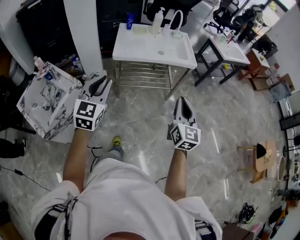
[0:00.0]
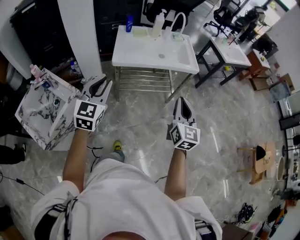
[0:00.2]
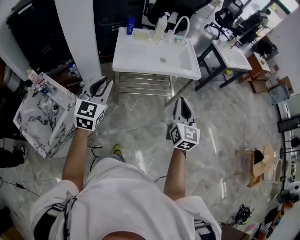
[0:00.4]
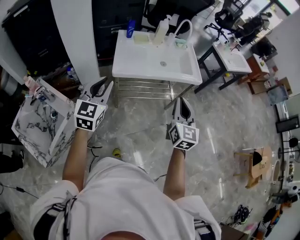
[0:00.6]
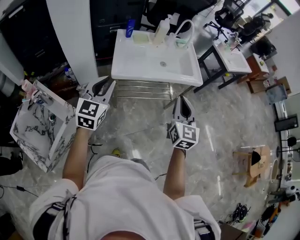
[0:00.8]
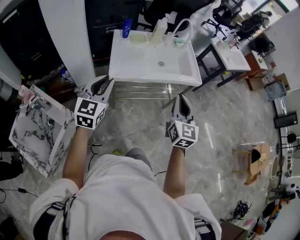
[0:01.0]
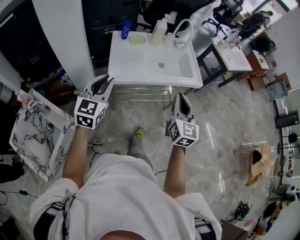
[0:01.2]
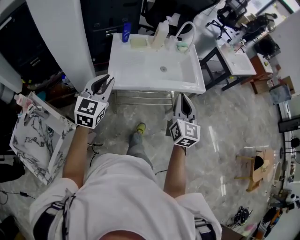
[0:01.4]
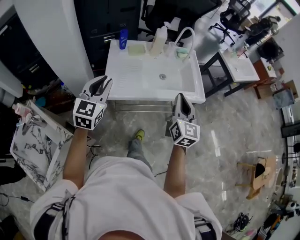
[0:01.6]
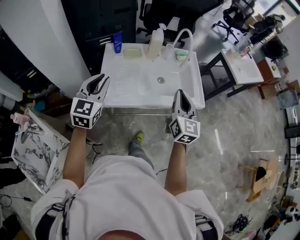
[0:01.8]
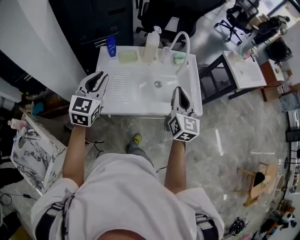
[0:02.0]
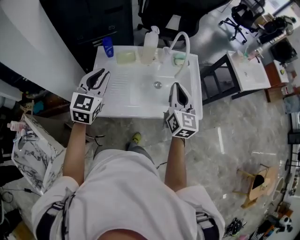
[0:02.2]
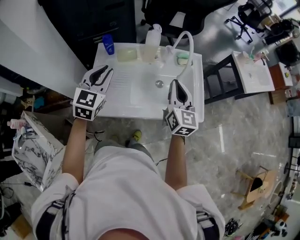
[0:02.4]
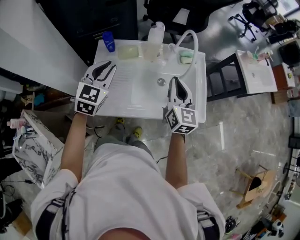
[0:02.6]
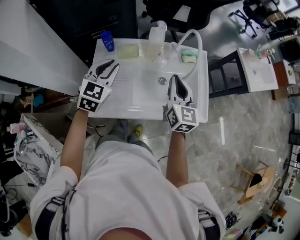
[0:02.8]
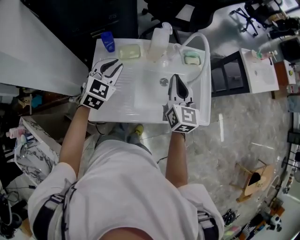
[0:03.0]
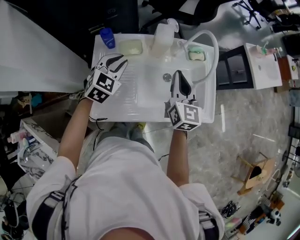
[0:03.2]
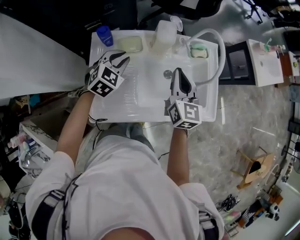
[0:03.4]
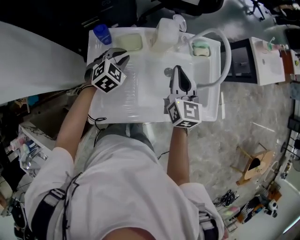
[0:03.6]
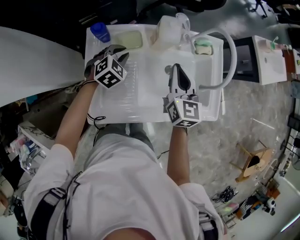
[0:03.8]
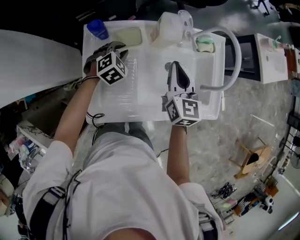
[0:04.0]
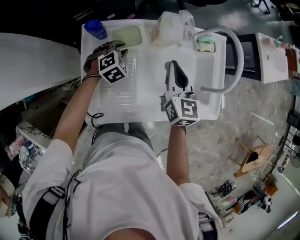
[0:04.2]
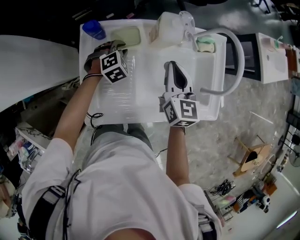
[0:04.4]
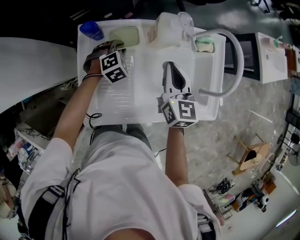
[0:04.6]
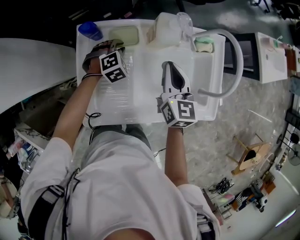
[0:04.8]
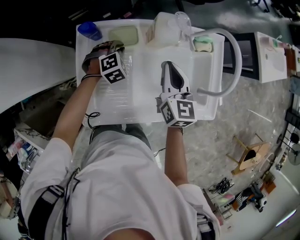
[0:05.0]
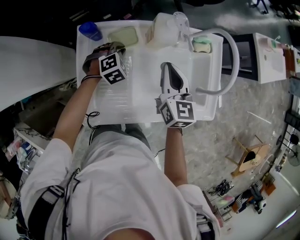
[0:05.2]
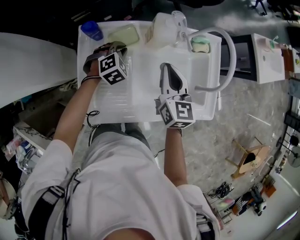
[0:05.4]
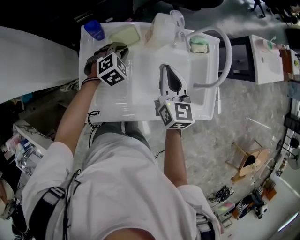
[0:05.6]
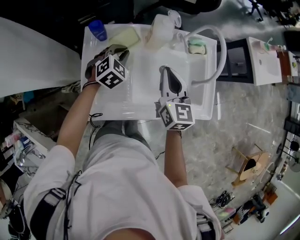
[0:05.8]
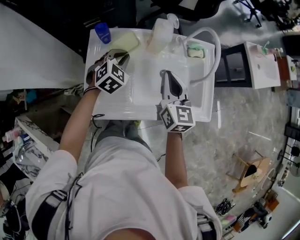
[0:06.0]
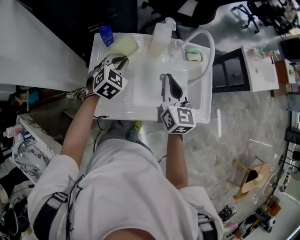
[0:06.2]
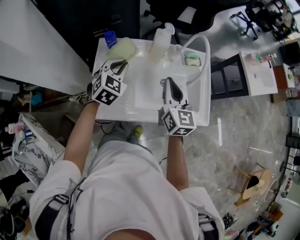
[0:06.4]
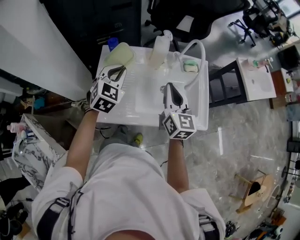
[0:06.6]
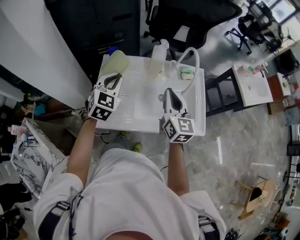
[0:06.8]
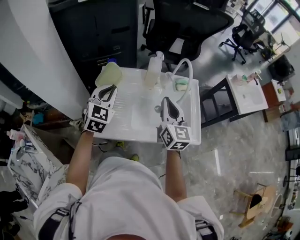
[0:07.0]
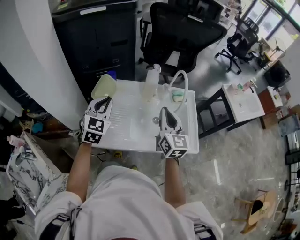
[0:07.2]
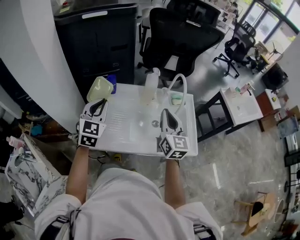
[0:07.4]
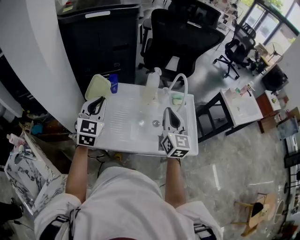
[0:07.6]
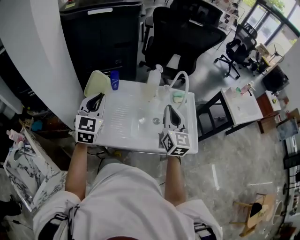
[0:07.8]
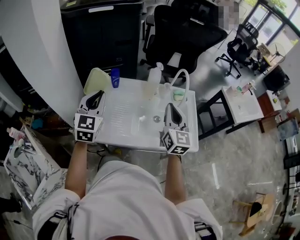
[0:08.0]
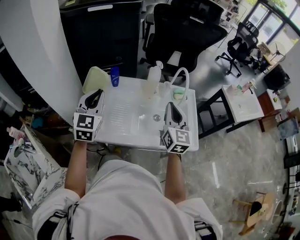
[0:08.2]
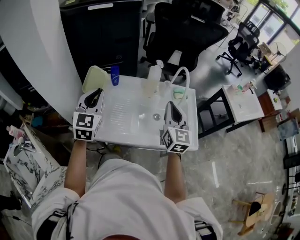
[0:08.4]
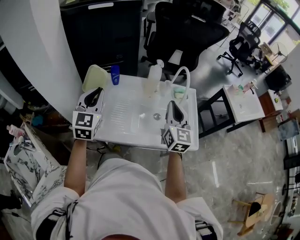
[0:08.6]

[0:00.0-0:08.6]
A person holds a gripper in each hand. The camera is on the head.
0:00.0 to 0:01.4: The two grippers go some 35 cm forward.
0:01.4 to 0:02.8: Both grippers move forward, approximately 35 cm.
0:02.8 to 0:04.4: The right gripper goes approximately 15 cm forward, downward and to the left. Meanwhile the left gripper goes approximately 30 cm downward and forward, and tilts its fingers about 30 degrees downward.
0:04.4 to 0:05.8: The left gripper travels upward by about 10 cm. Meanwhile the right gripper heads backward, covering some 5 cm.
0:05.8 to 0:07.2: The right gripper goes roughly 15 cm upward, backward and to the right. Meanwhile the left gripper travels upward and backward by about 30 cm, and swivels some 40 degrees.
0:07.2 to 0:08.6: The left gripper moves approximately 5 cm.

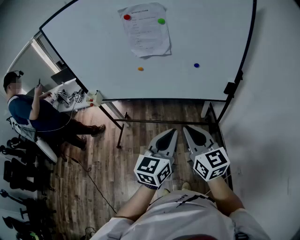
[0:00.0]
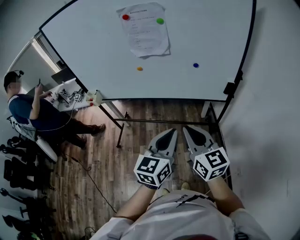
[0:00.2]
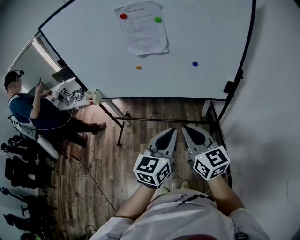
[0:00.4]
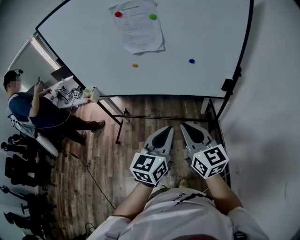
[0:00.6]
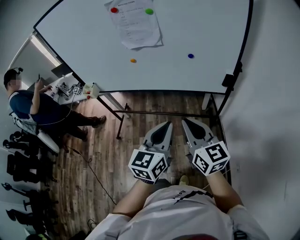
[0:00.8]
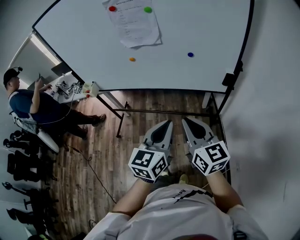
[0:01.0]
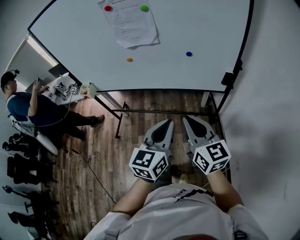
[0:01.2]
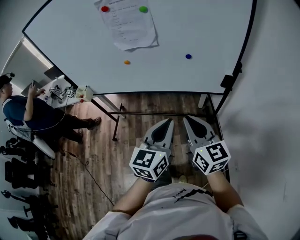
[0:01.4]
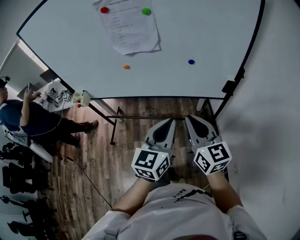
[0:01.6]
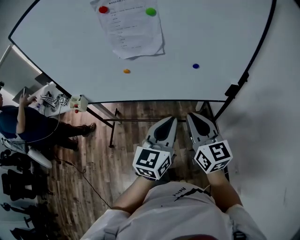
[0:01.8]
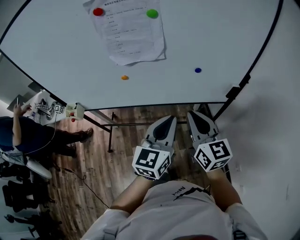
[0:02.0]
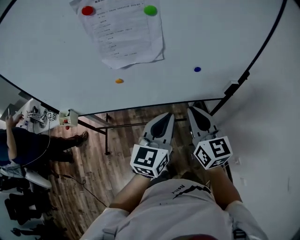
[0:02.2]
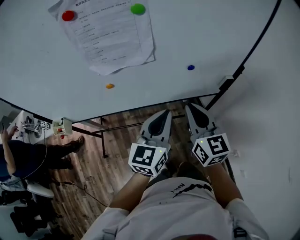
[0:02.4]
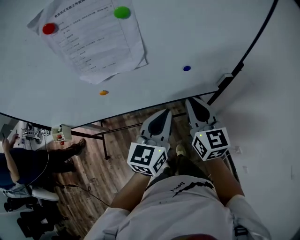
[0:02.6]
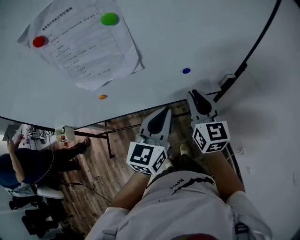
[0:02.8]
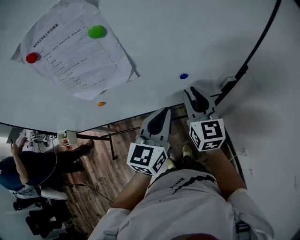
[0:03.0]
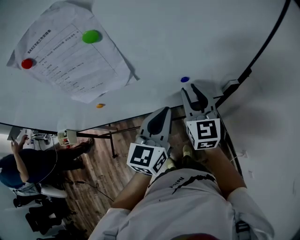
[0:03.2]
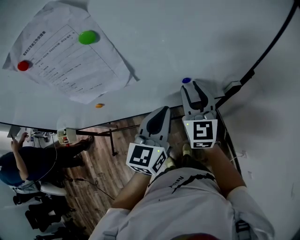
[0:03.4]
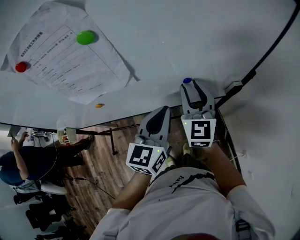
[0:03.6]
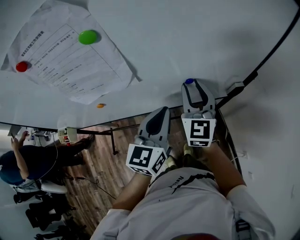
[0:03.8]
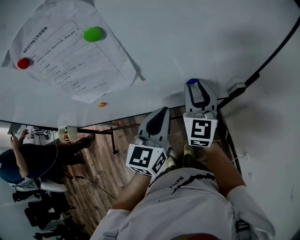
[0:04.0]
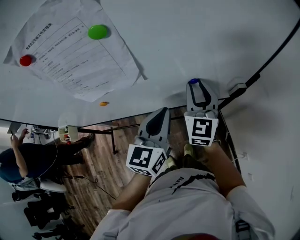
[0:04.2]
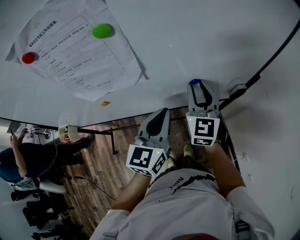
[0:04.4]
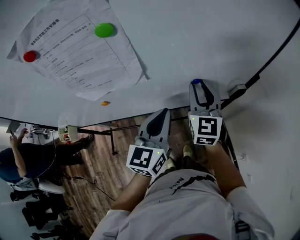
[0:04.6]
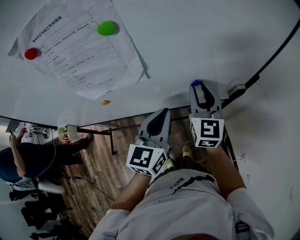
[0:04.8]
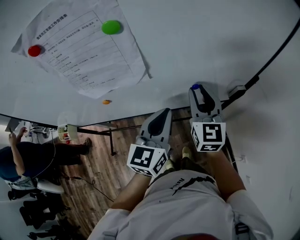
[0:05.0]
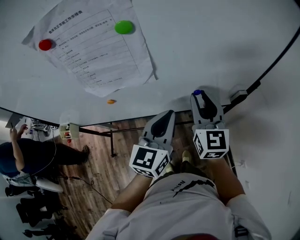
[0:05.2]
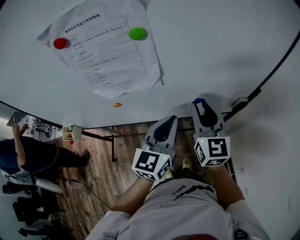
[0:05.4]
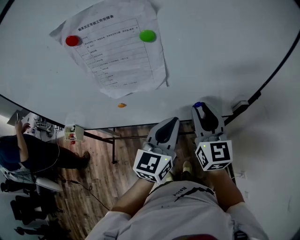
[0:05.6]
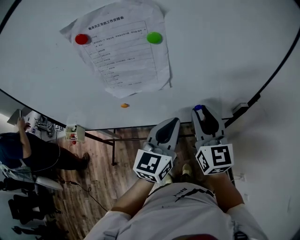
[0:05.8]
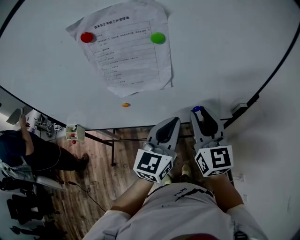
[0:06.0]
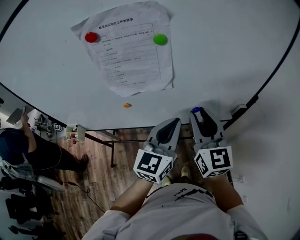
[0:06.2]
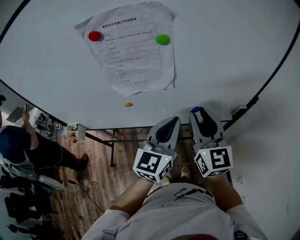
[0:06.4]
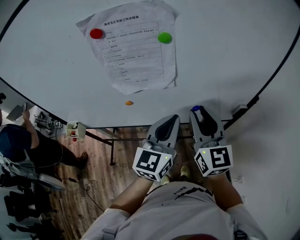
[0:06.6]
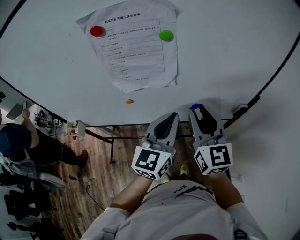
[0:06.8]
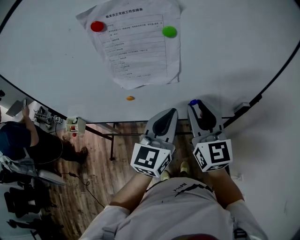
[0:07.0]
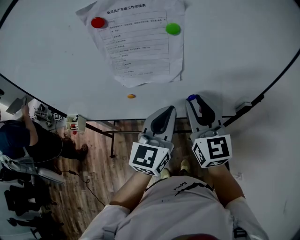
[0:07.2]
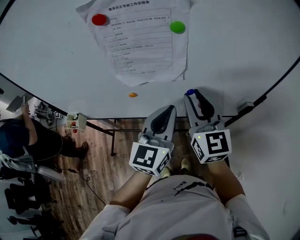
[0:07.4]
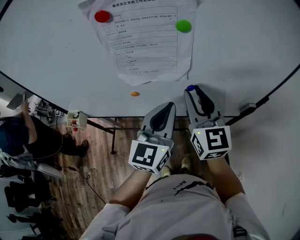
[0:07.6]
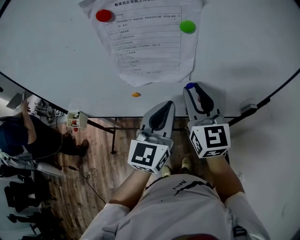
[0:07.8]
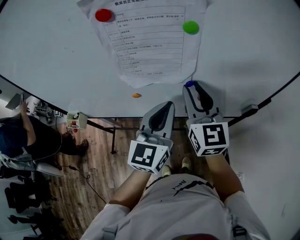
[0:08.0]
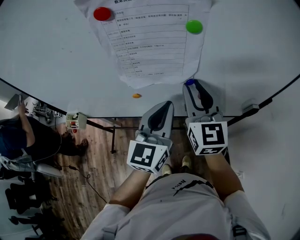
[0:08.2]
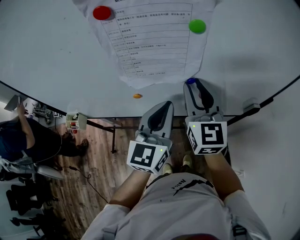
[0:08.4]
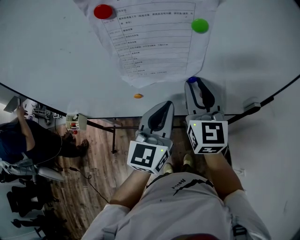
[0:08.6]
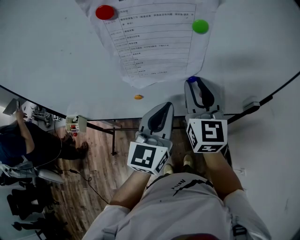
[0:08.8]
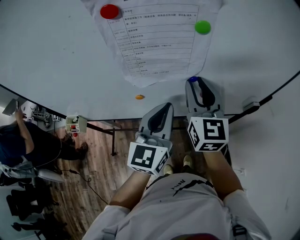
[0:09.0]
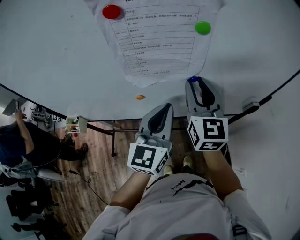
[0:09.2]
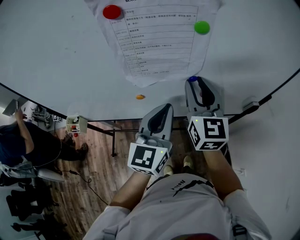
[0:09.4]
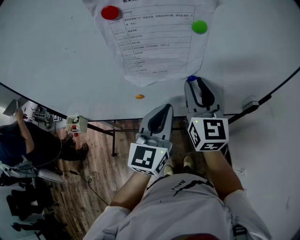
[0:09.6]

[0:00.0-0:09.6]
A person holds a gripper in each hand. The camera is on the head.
0:00.0 to 0:01.6: The right gripper goes roughly 10 cm forward and to the right; the left gripper travels forward by approximately 10 cm.
0:01.6 to 0:03.2: Both grippers travel together forward, about 25 cm. The right gripper changes its angle by roughly 30 degrees, and opens up.
0:03.2 to 0:04.8: The grippers make only small movements.
0:04.8 to 0:06.4: The right gripper moves backward, upward and to the left, roughly 15 cm; the left gripper moves upward, approximately 5 cm.
0:06.4 to 0:08.0: The right gripper moves to the left and forward, roughly 10 cm. Meanwhile the left gripper shifts approximately 5 cm to the left.
0:08.0 to 0:09.6: The grippers move only a little.

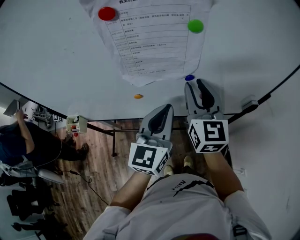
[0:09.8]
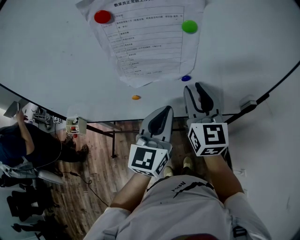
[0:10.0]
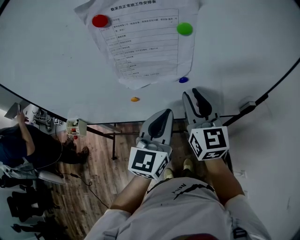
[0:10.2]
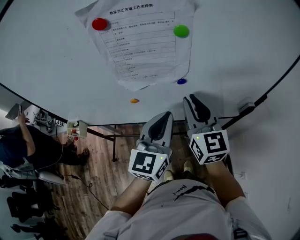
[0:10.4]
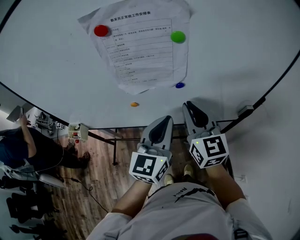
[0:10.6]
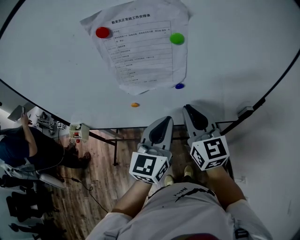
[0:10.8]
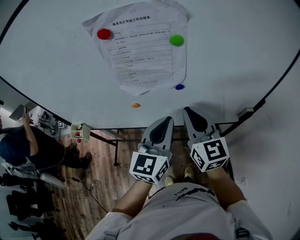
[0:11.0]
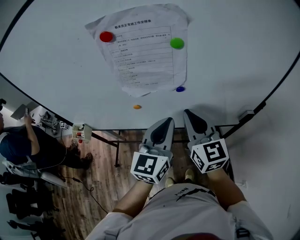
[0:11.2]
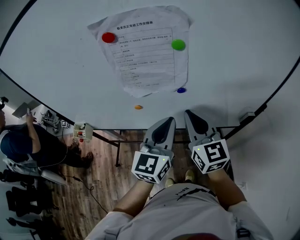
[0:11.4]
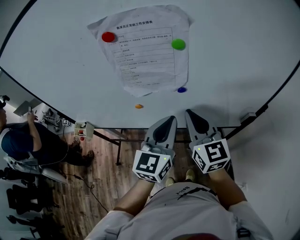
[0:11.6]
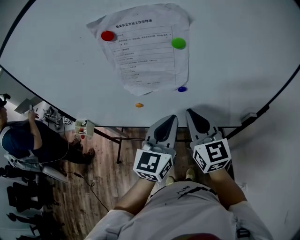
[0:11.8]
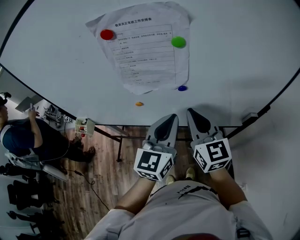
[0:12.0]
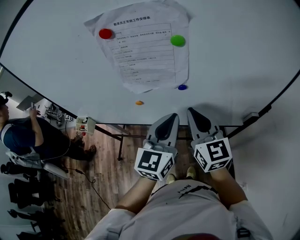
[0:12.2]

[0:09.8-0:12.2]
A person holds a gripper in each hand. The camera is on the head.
0:09.8 to 0:11.0: The right gripper shifts about 5 cm backward, and closes.
0:11.0 to 0:12.2: The grippers stay close to where they were, moving slightly.

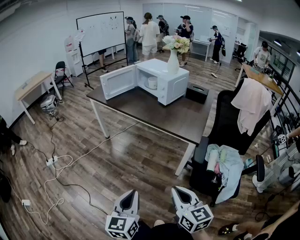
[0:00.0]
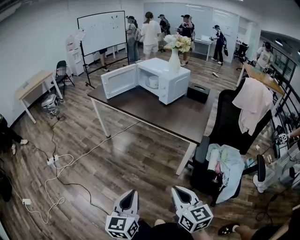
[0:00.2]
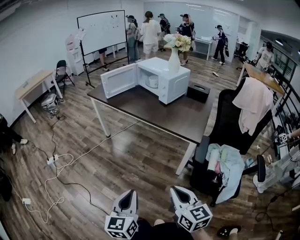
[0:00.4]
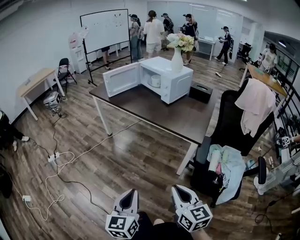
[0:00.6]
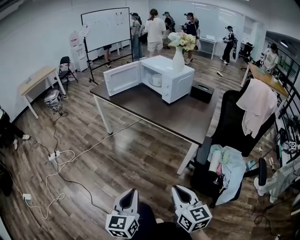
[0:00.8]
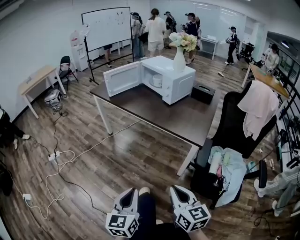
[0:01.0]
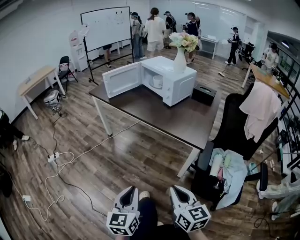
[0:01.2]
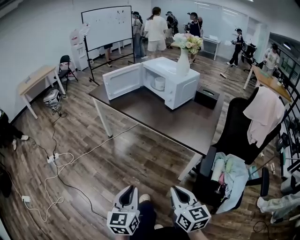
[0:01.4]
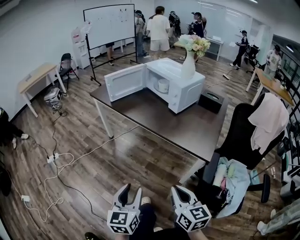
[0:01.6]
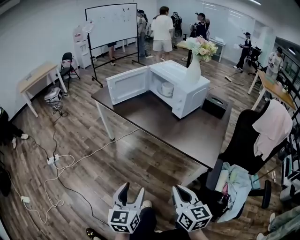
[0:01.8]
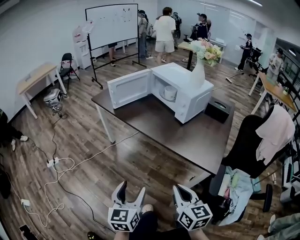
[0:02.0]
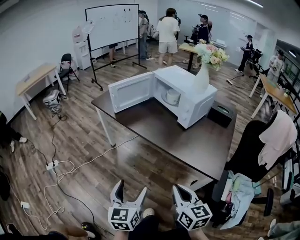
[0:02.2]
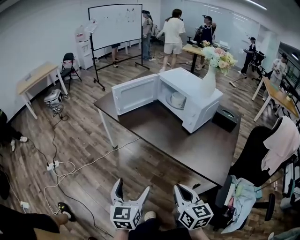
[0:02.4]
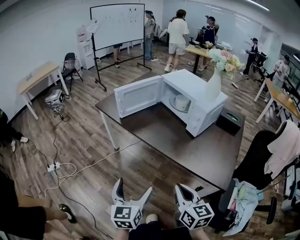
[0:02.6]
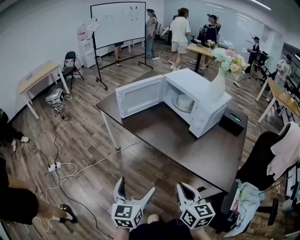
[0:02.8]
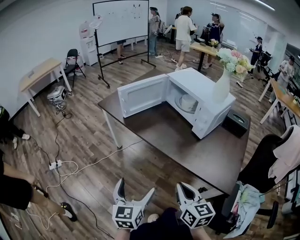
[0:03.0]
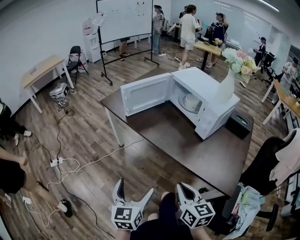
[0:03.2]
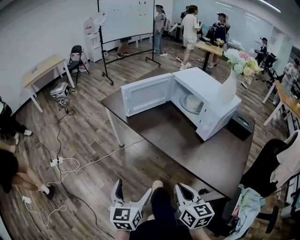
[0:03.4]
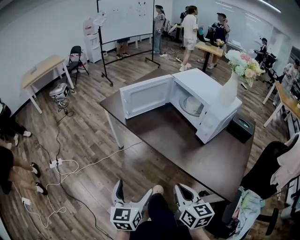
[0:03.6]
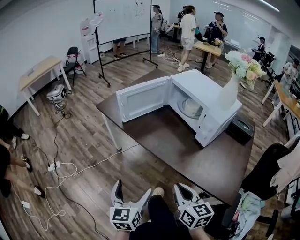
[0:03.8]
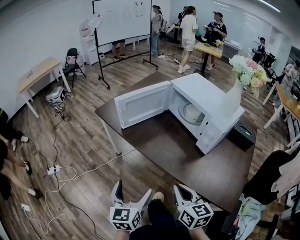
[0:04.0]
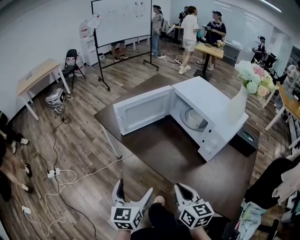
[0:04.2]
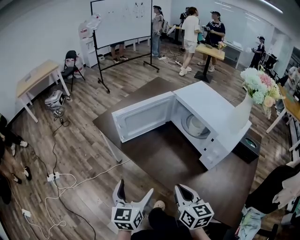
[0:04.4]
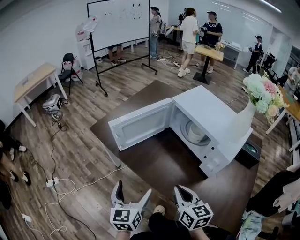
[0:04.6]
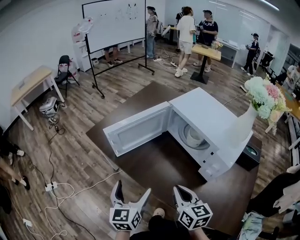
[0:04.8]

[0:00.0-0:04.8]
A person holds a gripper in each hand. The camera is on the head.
0:00.0 to 0:01.6: The grippers both shift forward by roughly 15 cm.
0:01.6 to 0:03.2: Both grippers move forward, some 25 cm. The left gripper opens its fingers.
0:03.2 to 0:04.8: Both grippers travel together forward, about 30 cm.
